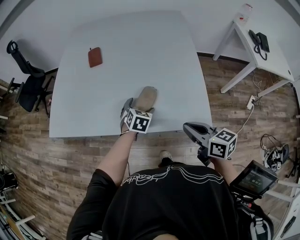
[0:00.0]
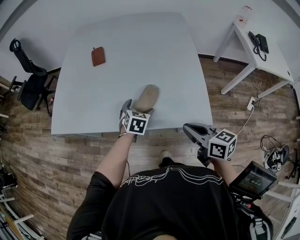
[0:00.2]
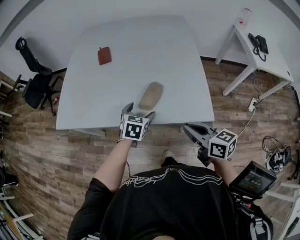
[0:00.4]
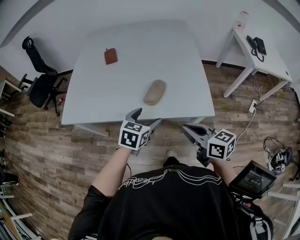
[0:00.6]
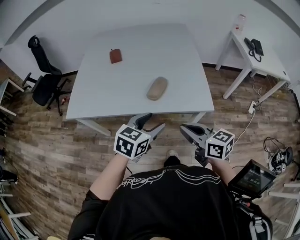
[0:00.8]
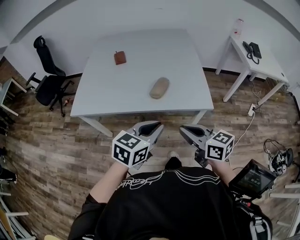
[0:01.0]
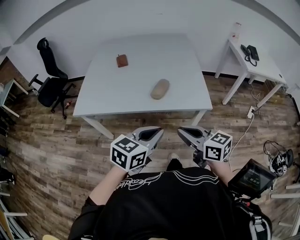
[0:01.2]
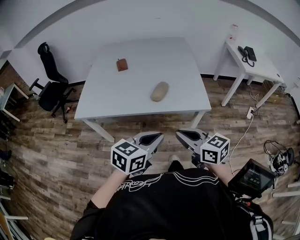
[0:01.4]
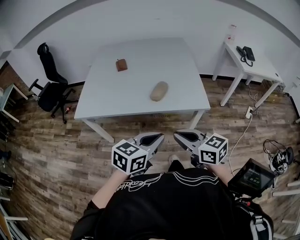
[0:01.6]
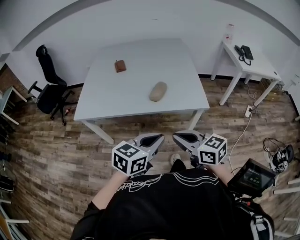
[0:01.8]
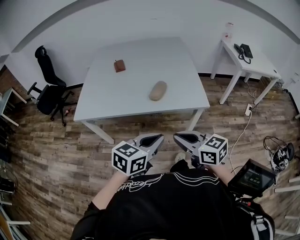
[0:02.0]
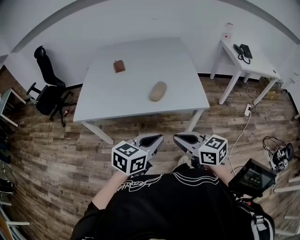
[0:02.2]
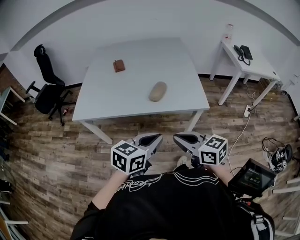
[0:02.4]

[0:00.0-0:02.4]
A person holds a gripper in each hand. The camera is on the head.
0:00.0 to 0:01.2: The left gripper shifts approximately 40 cm backward and upward, swivels some 40 degrees, and closes. Meanwhile the right gripper goes approximately 25 cm backward, to the left and upward.
0:01.2 to 0:02.4: The grippers make only small movements.

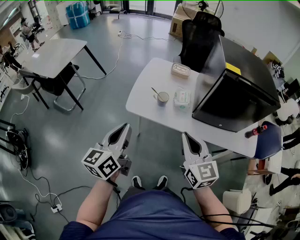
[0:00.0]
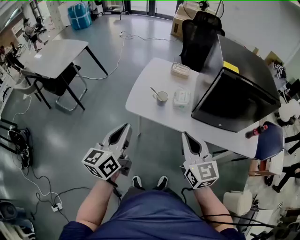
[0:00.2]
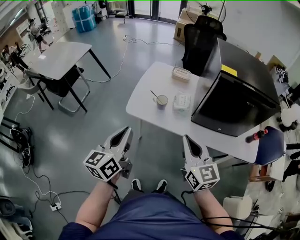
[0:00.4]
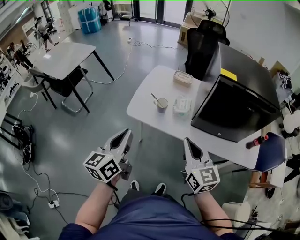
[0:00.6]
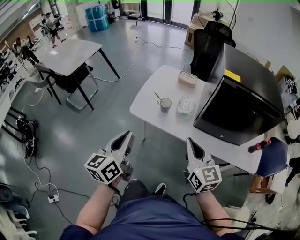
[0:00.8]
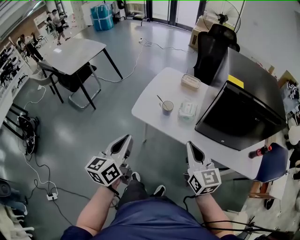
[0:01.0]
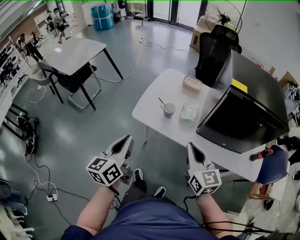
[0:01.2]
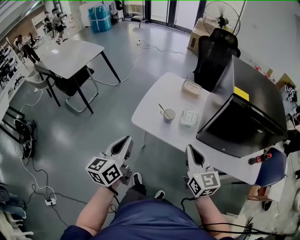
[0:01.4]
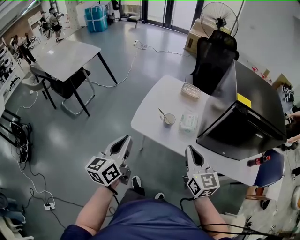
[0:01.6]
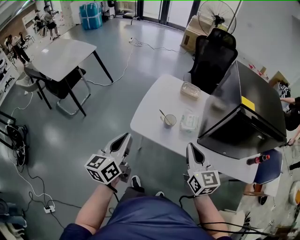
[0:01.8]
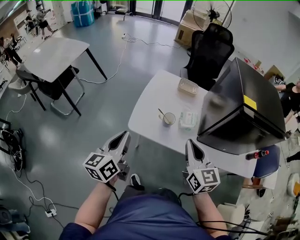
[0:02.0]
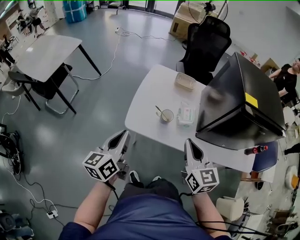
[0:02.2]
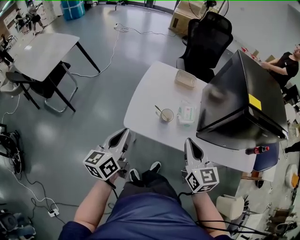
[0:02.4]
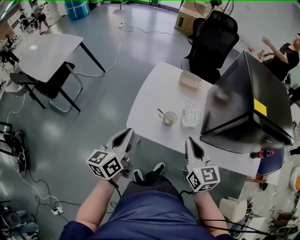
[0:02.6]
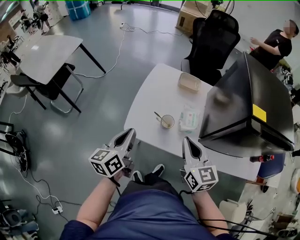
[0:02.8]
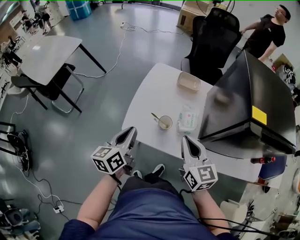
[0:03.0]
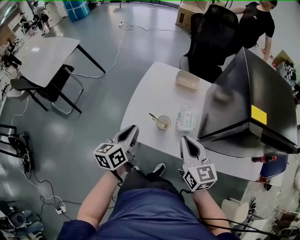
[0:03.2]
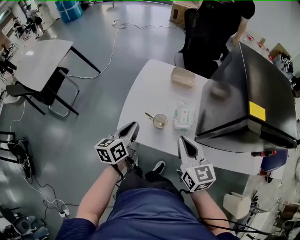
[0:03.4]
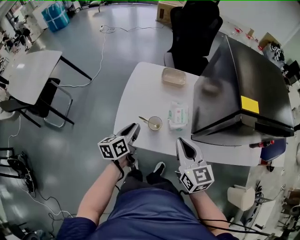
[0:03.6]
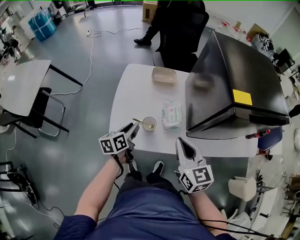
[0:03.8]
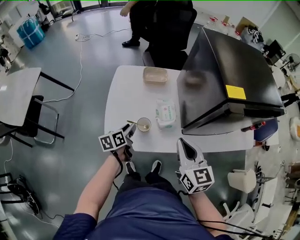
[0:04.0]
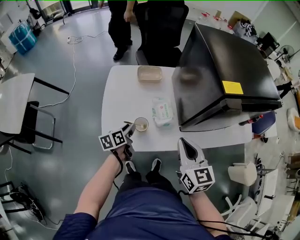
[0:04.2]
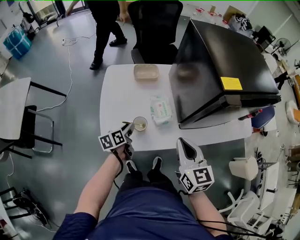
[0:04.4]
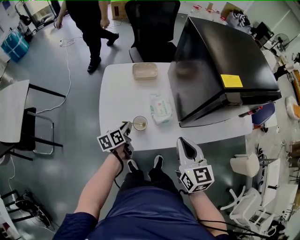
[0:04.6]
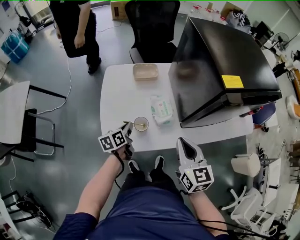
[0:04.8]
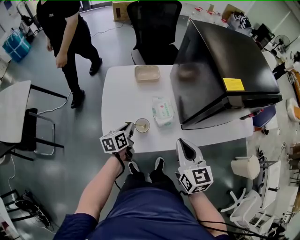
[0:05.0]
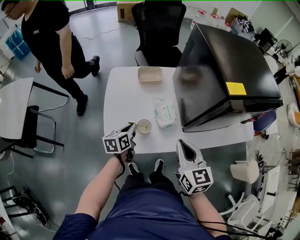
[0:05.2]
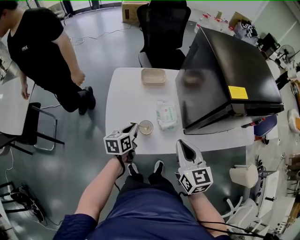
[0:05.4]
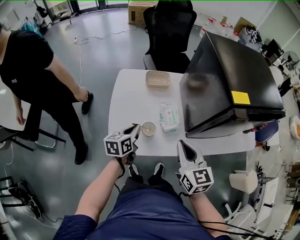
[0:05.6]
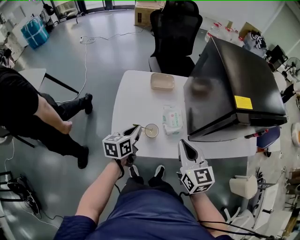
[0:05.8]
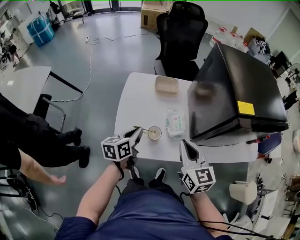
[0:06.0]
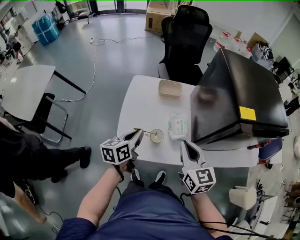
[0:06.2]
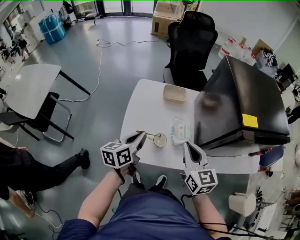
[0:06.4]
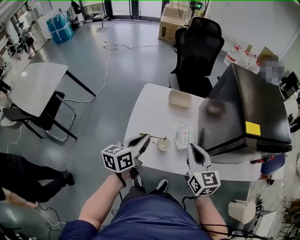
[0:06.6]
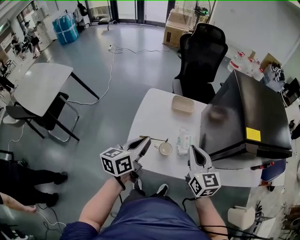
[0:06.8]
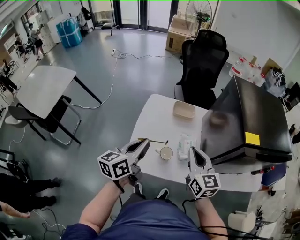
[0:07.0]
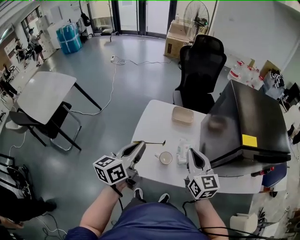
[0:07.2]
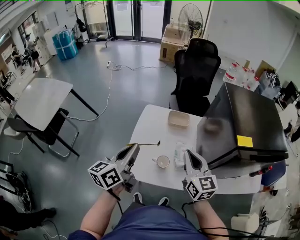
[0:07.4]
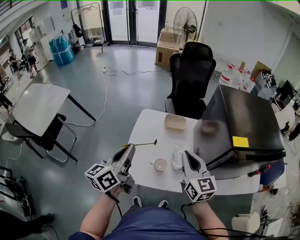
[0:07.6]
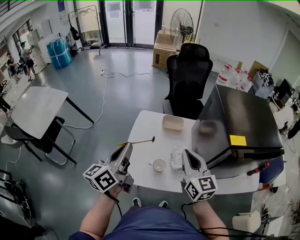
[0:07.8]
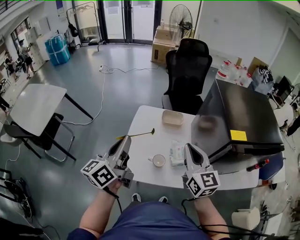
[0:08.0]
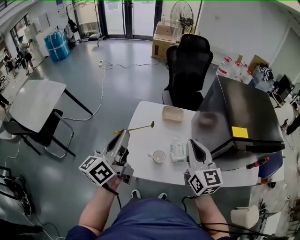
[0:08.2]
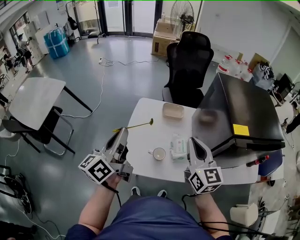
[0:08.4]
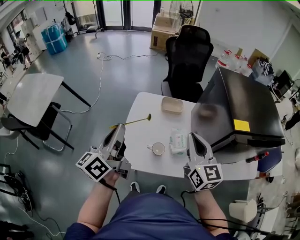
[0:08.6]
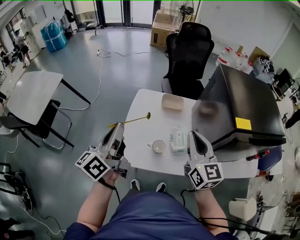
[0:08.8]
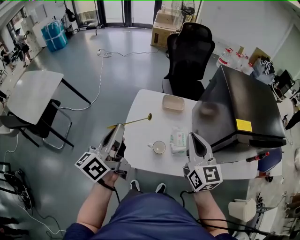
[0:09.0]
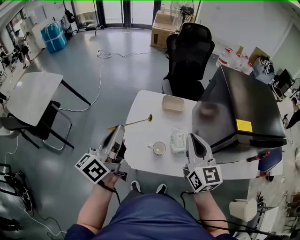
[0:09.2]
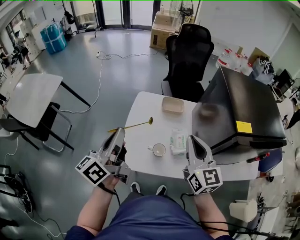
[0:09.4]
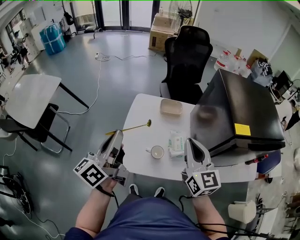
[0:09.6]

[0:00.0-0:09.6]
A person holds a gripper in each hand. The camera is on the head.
0:00.0 to 0:01.6: Both grippers travel together forward, approximately 5 cm.
0:01.6 to 0:03.2: The right gripper moves forward, about 15 cm, while the left gripper shifts about 20 cm forward and downward.
0:03.2 to 0:04.8: The left gripper heads downward, covering roughly 15 cm, rotates approximately 30 degrees, and opens and closes again, while the right gripper ends up roughly 5 cm from where it was, and changes its angle by about 30 degrees.
0:04.8 to 0:06.4: The right gripper is displaced forward and to the left by approximately 10 cm, while the left gripper goes about 15 cm upward.
0:06.4 to 0:08.0: The right gripper shifts about 10 cm upward. Meanwhile the left gripper moves upward, some 20 cm, and turns by roughly 30 degrees.
0:08.0 to 0:09.6: The grippers stay close to where they were, moving slightly.

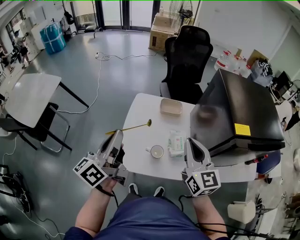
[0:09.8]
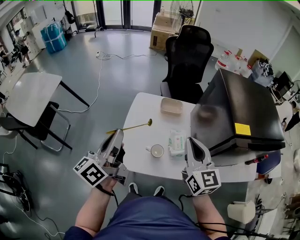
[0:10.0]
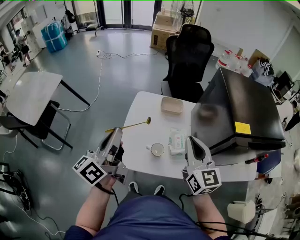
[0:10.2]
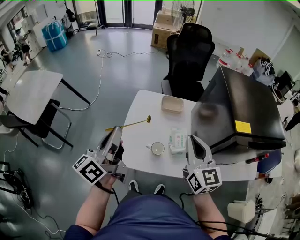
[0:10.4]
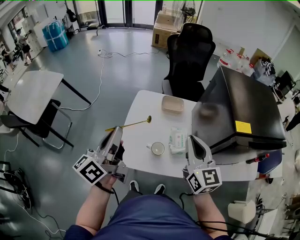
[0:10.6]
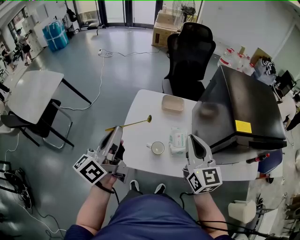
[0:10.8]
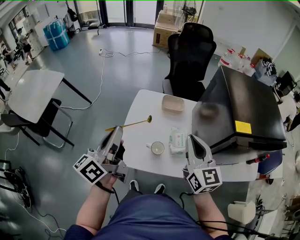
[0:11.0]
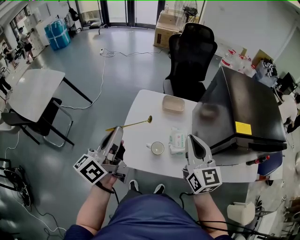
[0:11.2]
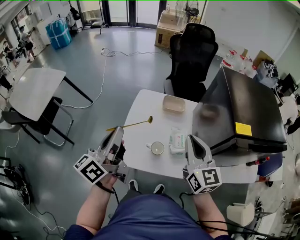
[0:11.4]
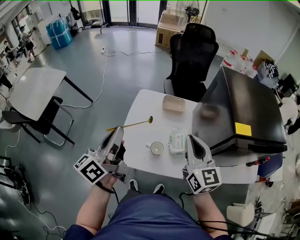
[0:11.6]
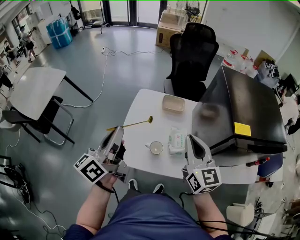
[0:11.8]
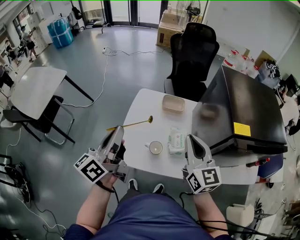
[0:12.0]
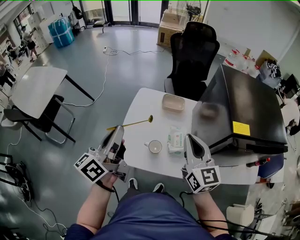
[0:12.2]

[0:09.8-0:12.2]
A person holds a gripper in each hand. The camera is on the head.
0:09.8 to 0:11.0: Both grippers stay put.
0:11.0 to 0:12.2: The grippers stay close to where they were, moving slightly.

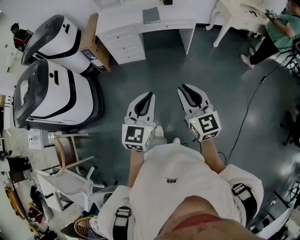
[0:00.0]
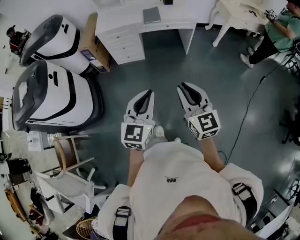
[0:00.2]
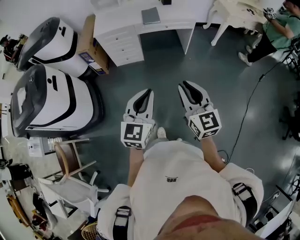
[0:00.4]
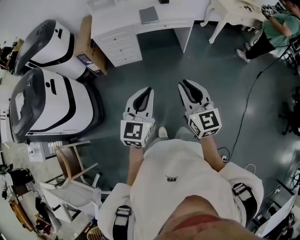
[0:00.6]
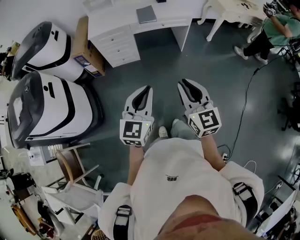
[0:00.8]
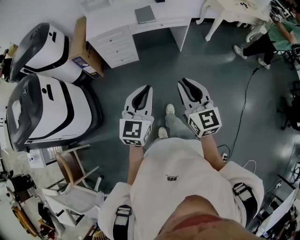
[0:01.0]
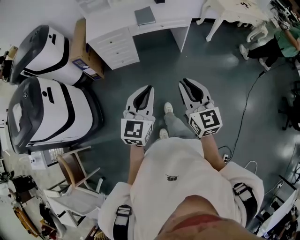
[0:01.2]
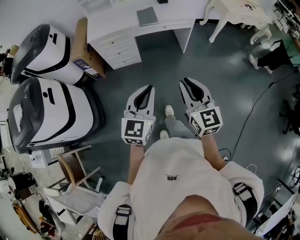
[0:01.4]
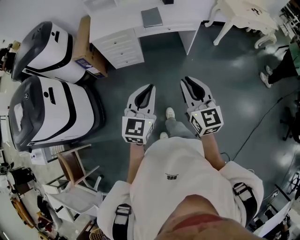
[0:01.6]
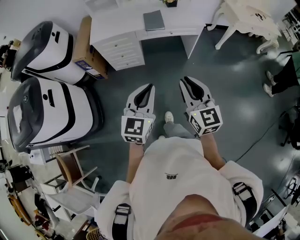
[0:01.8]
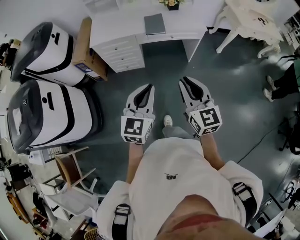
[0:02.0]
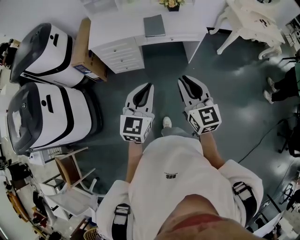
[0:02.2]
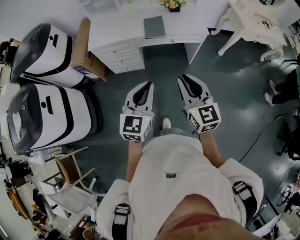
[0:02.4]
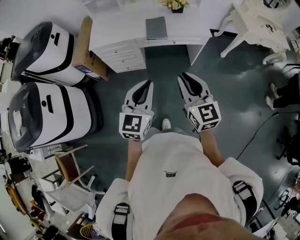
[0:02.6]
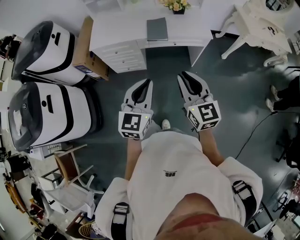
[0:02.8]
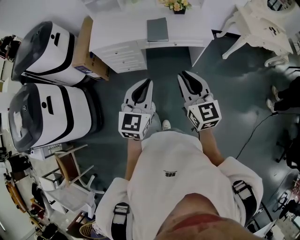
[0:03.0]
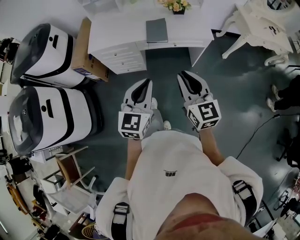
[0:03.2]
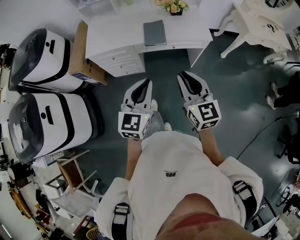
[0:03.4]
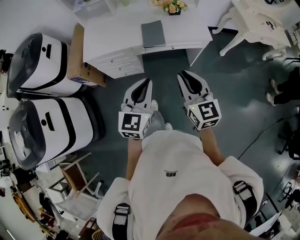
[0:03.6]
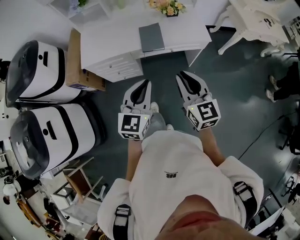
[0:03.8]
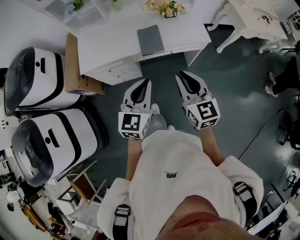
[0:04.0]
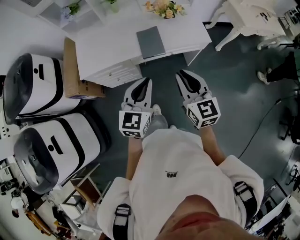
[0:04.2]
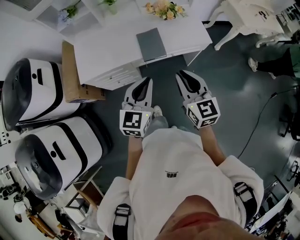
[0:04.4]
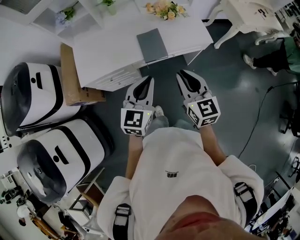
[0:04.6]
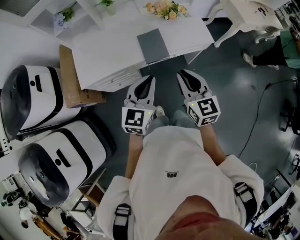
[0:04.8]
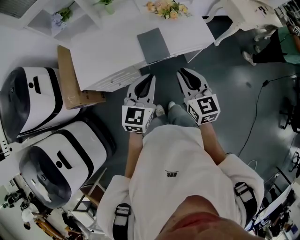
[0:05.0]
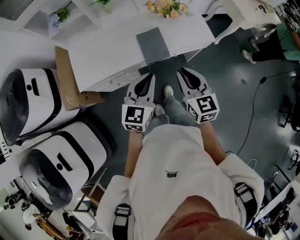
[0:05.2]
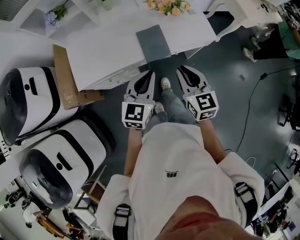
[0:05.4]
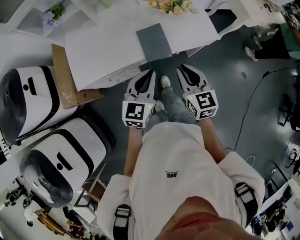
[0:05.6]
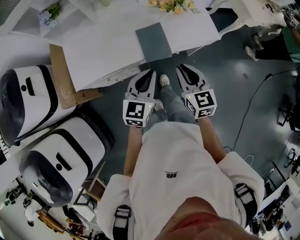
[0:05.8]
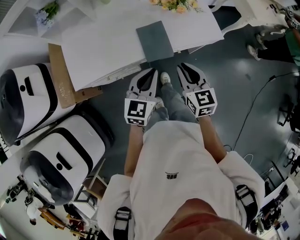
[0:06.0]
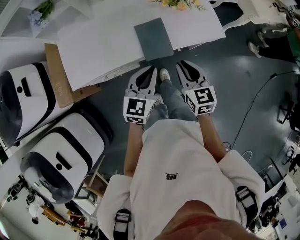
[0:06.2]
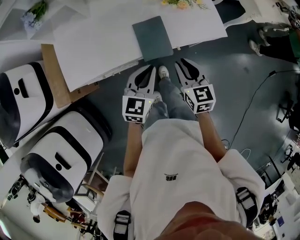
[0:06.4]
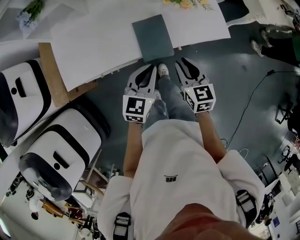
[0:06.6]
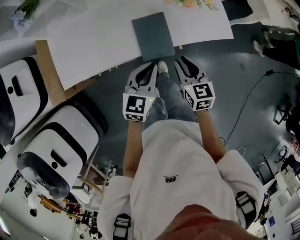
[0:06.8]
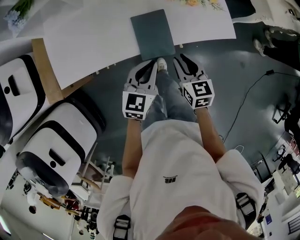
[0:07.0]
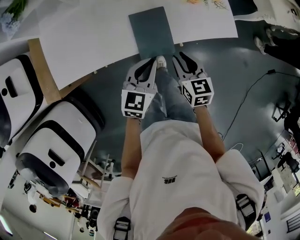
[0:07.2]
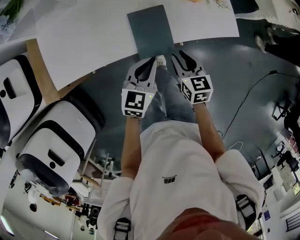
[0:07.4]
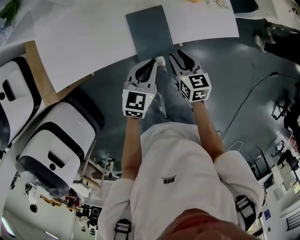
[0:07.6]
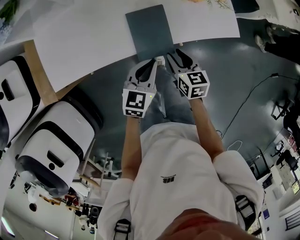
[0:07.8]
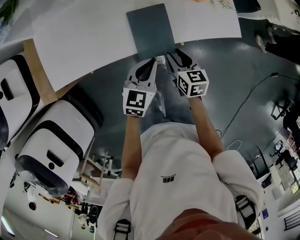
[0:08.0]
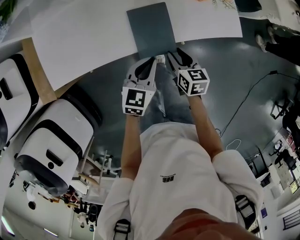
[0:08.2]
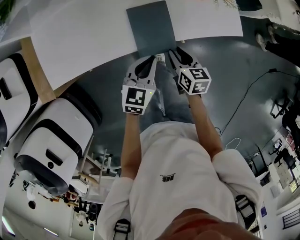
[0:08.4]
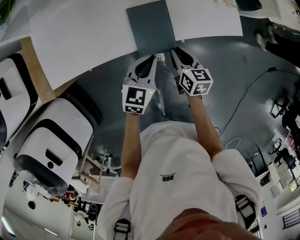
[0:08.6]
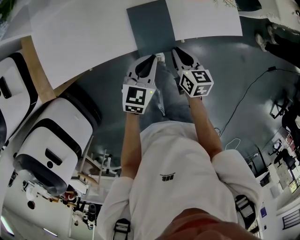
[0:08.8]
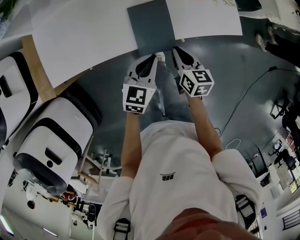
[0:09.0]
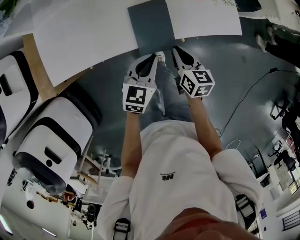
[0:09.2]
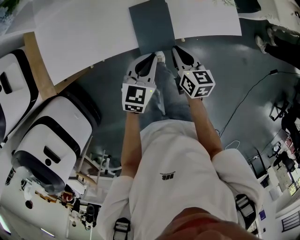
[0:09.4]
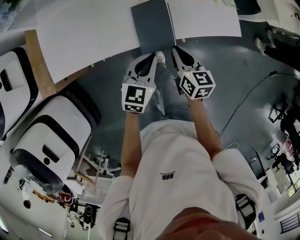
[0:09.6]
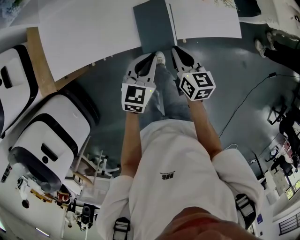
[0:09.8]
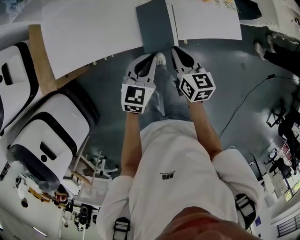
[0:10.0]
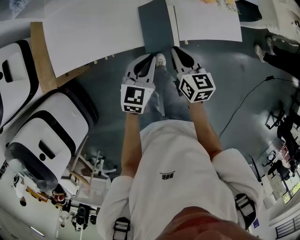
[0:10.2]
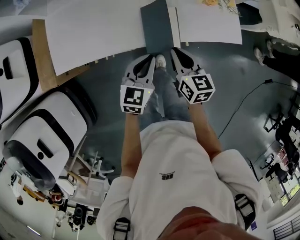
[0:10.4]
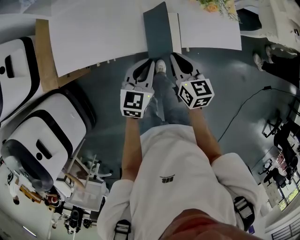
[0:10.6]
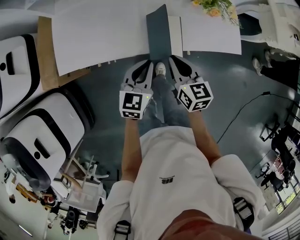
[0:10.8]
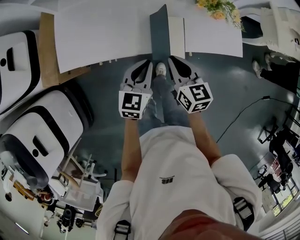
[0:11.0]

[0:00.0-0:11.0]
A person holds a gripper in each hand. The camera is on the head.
0:00.0 to 0:01.6: The grippers both shift forward by roughly 20 cm.
0:01.6 to 0:03.2: The two grippers go some 25 cm forward.
0:03.2 to 0:04.8: Both grippers travel together forward, some 25 cm.
0:04.8 to 0:06.2: Both grippers travel together downward and forward, approximately 15 cm.
0:06.2 to 0:07.8: The left gripper is displaced downward and forward by some 15 cm, while the right gripper shifts approximately 20 cm downward, and opens its fingers.
0:07.8 to 0:09.4: The right gripper closes up.
0:09.4 to 0:11.0: The left gripper moves to the left, roughly 5 cm. Meanwhile the right gripper moves to the left and upward, roughly 10 cm.
